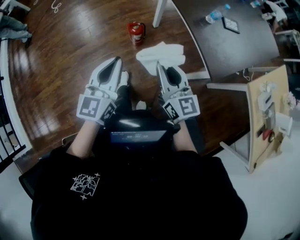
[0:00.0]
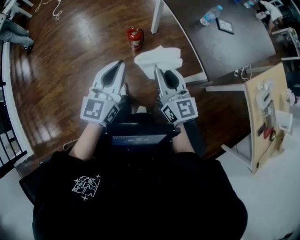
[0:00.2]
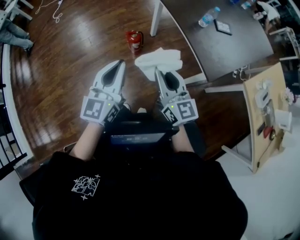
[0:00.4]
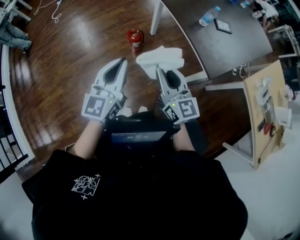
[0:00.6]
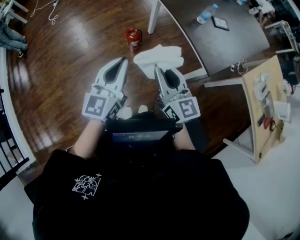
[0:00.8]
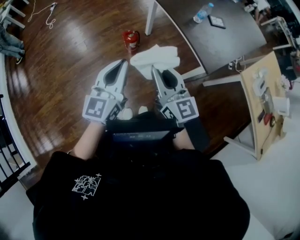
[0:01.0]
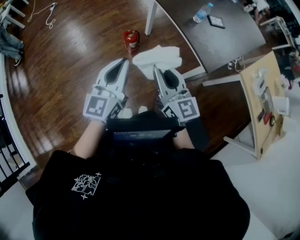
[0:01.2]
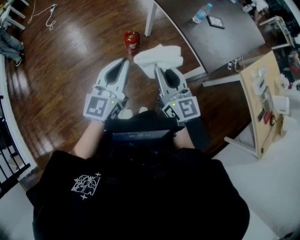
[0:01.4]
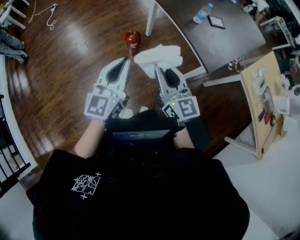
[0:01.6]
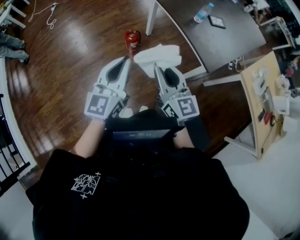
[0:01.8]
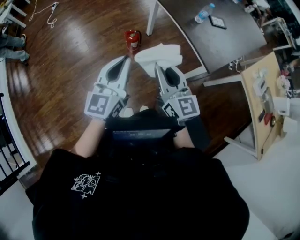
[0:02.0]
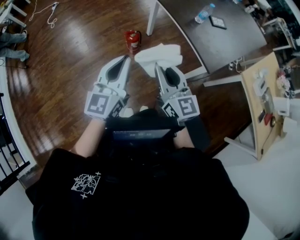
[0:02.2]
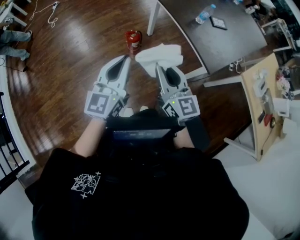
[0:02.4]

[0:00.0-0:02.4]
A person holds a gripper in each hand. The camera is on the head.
0:00.0 to 0:01.2: The right gripper shifts approximately 10 cm upward and backward. Meanwhile the left gripper moves upward, roughly 5 cm.
0:01.2 to 0:02.4: Neither gripper changes place.

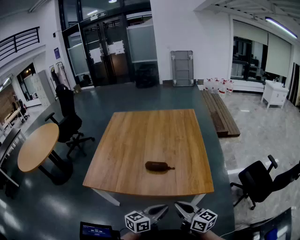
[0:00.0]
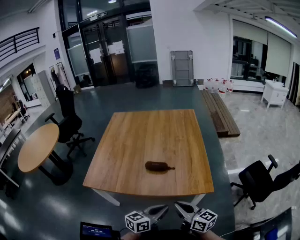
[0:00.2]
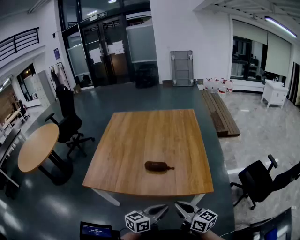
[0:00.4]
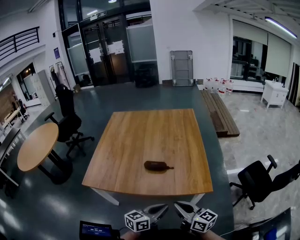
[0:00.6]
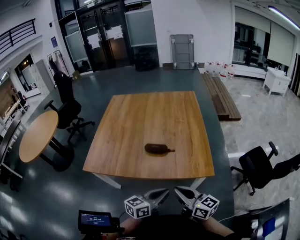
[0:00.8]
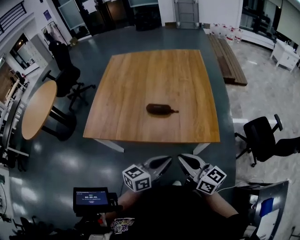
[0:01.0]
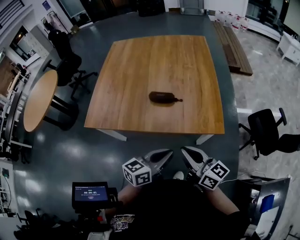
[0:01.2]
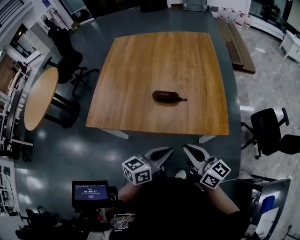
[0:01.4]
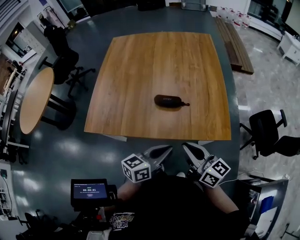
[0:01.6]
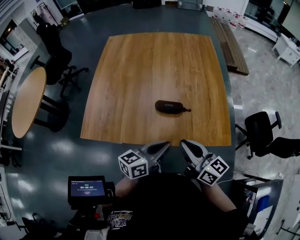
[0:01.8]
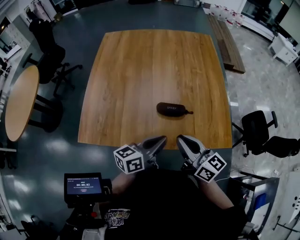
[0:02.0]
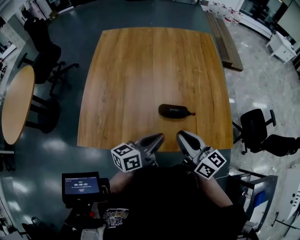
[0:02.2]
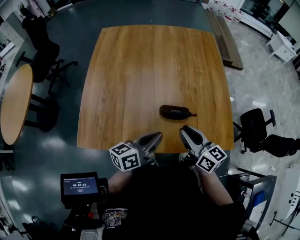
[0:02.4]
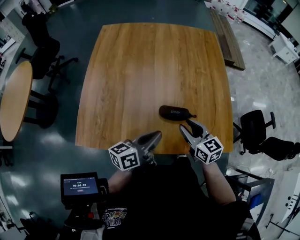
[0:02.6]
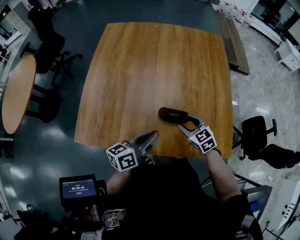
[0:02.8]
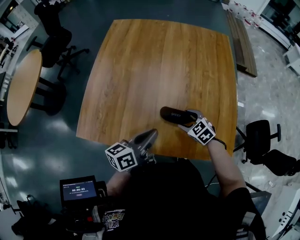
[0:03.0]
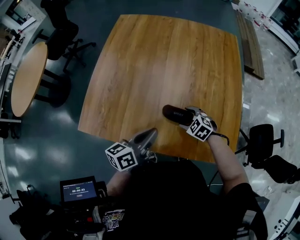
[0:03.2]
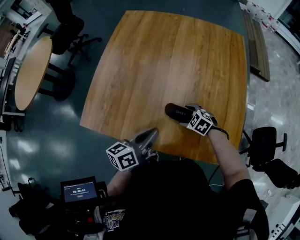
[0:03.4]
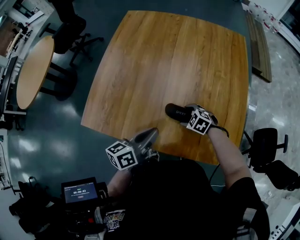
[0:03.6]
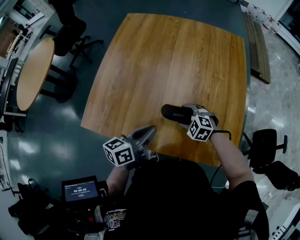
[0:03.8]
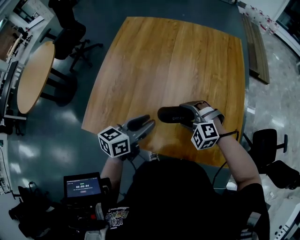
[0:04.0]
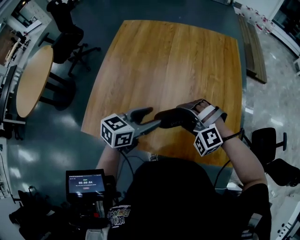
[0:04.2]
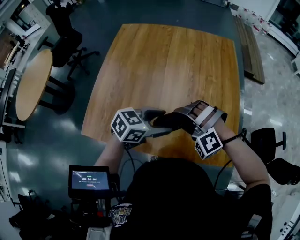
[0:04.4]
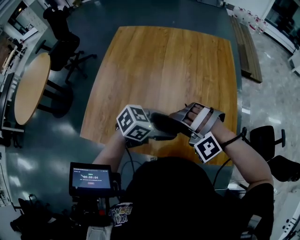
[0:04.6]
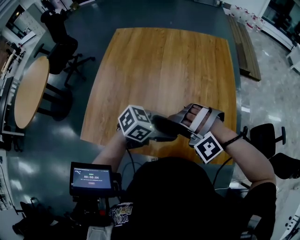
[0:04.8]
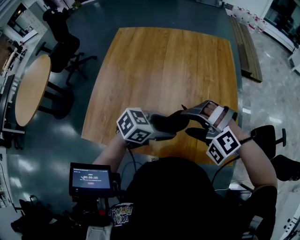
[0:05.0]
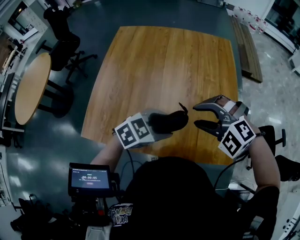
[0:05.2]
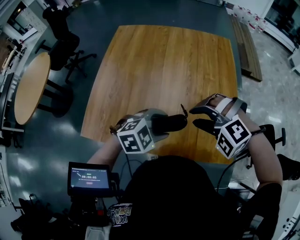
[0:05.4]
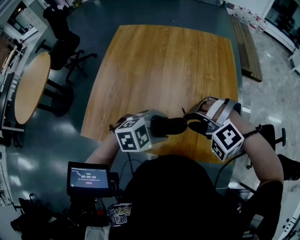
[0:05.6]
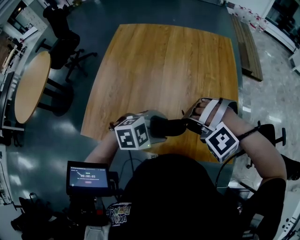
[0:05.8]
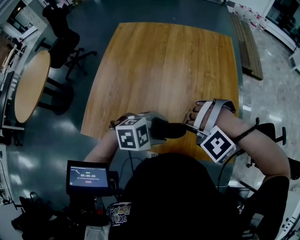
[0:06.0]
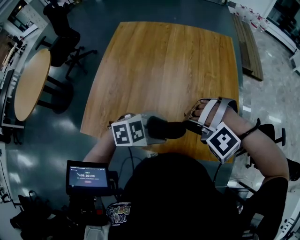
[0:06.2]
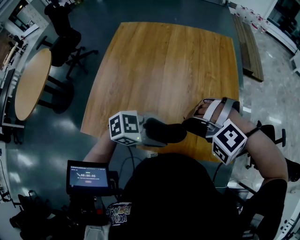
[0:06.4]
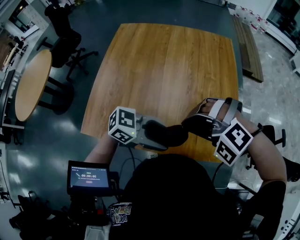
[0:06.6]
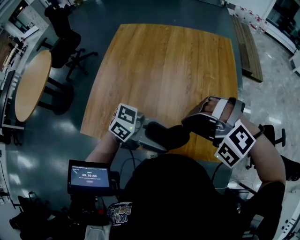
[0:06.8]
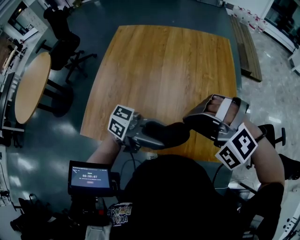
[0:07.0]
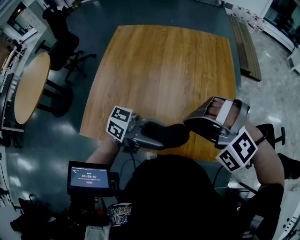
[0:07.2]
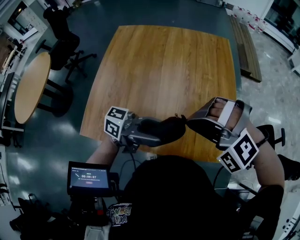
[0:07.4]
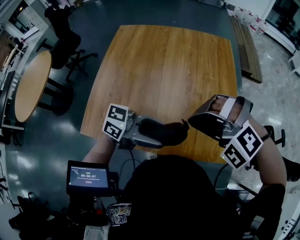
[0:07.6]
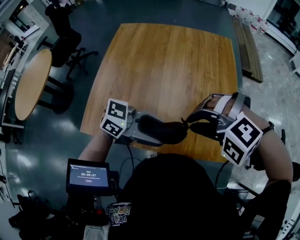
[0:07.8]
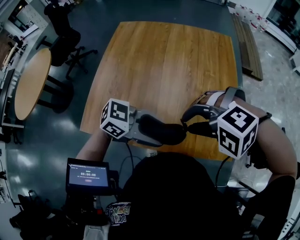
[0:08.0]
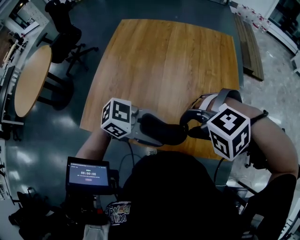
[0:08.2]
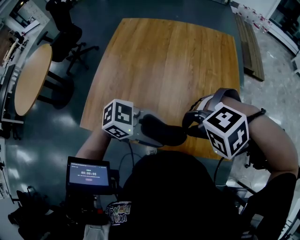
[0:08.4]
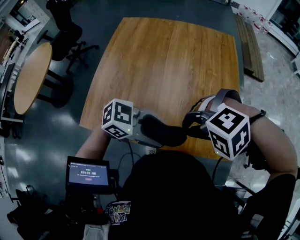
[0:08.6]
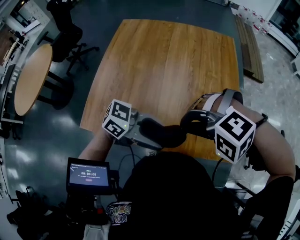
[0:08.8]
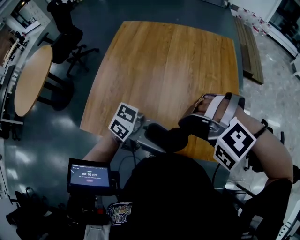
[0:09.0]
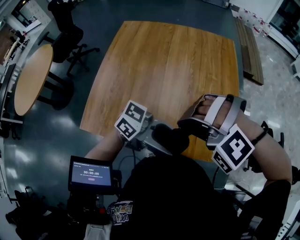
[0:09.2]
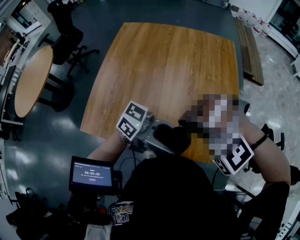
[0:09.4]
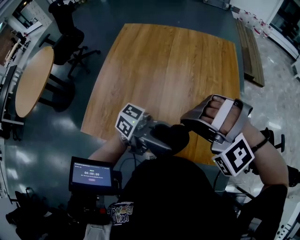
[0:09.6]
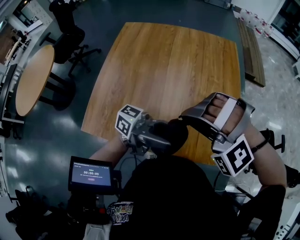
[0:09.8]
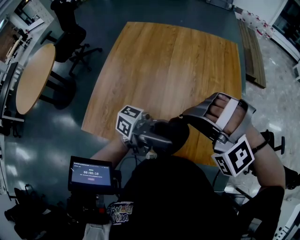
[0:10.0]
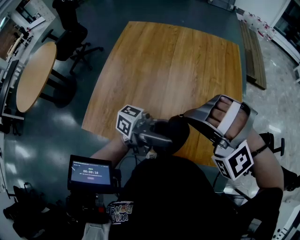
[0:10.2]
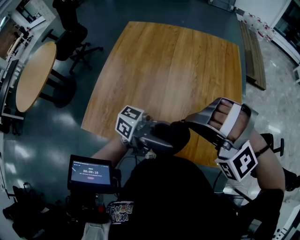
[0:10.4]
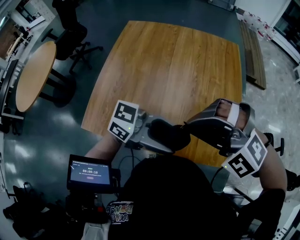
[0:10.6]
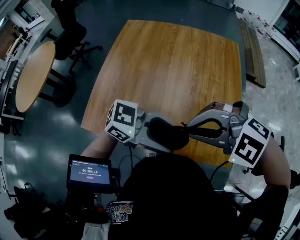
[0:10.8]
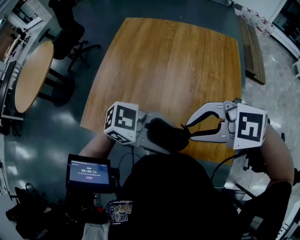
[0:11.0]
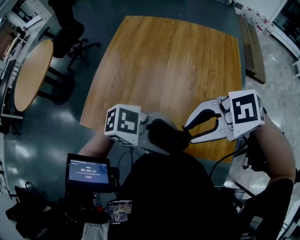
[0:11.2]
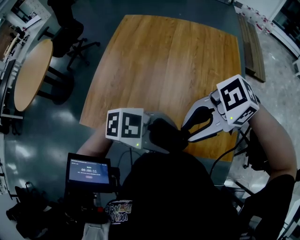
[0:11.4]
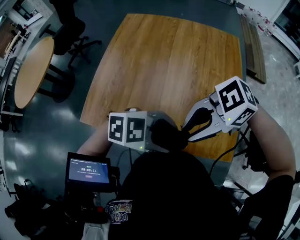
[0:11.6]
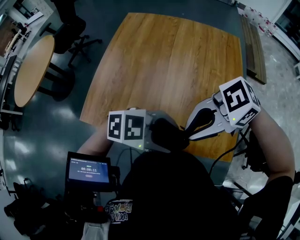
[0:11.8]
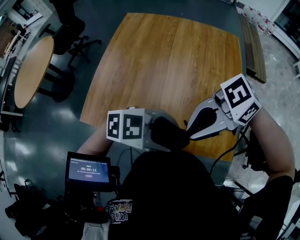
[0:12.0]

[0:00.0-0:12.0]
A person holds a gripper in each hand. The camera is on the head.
0:00.0 to 0:01.6: The grippers both shift forward by some 5 cm.
0:01.6 to 0:03.0: The right gripper goes roughly 30 cm forward and downward, tips its fingers downward by some 50 degrees, and opens its fingers, while the left gripper heads forward and to the left, covering roughly 20 cm.
0:03.0 to 0:04.4: The right gripper travels upward by about 15 cm, and twists about 70 degrees counterclockwise, seen from behind. The left gripper ends up approximately 5 cm from where it was, swivels approximately 50 degrees, and opens up.
0:04.4 to 0:06.0: The right gripper changes its angle by about 20 degrees, and closes. Meanwhile the left gripper ends up approximately 5 cm from where it was, and changes its angle by some 40 degrees.
0:06.0 to 0:07.6: The two grippers go about 10 cm upward. The right gripper rotates about 30 degrees. The left gripper tips its fingers upward by some 50 degrees.
0:09.0 to 0:10.4: The right gripper swivels roughly 30 degrees. Meanwhile the left gripper turns by about 20 degrees.
0:10.4 to 0:12.0: The left gripper is displaced downward by approximately 5 cm, and angles its fingers downward, by some 50 degrees, while the right gripper rotates approximately 100 degrees.

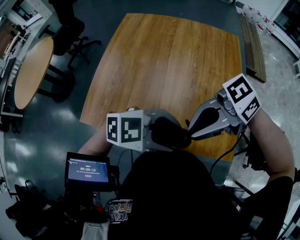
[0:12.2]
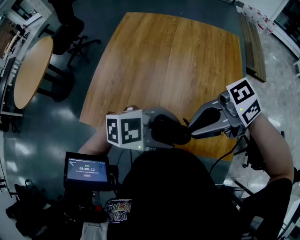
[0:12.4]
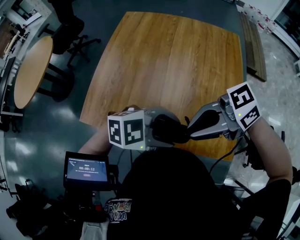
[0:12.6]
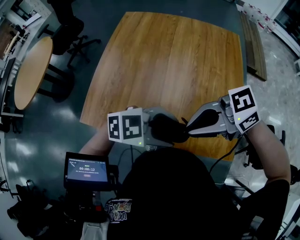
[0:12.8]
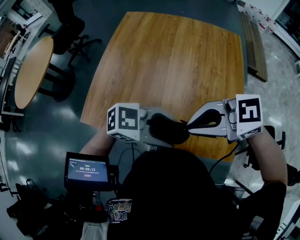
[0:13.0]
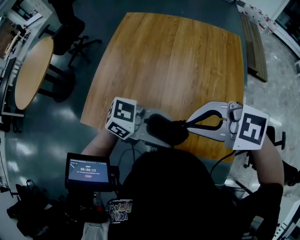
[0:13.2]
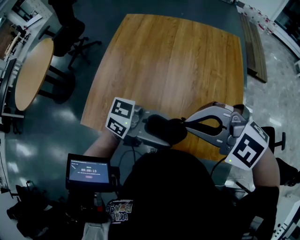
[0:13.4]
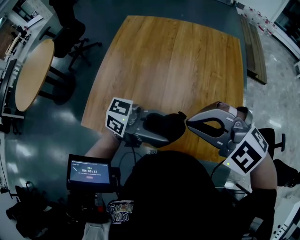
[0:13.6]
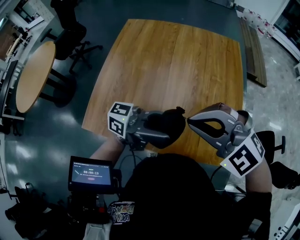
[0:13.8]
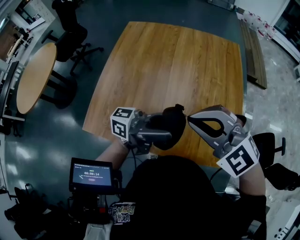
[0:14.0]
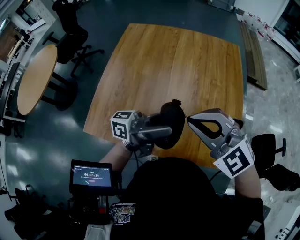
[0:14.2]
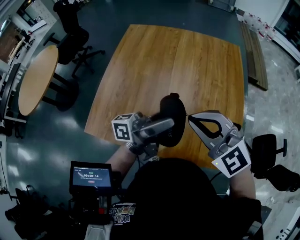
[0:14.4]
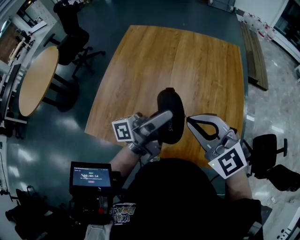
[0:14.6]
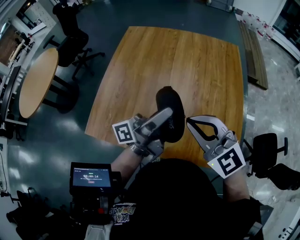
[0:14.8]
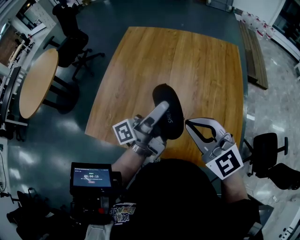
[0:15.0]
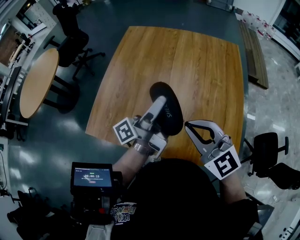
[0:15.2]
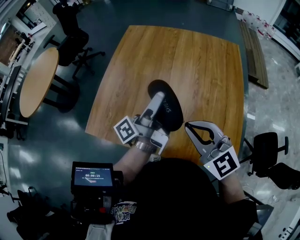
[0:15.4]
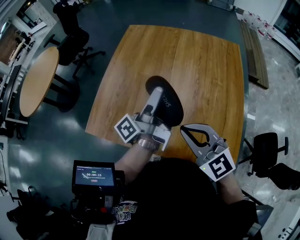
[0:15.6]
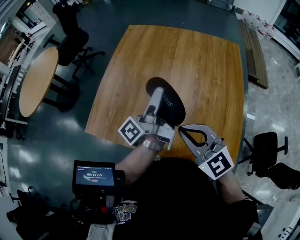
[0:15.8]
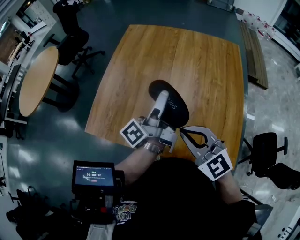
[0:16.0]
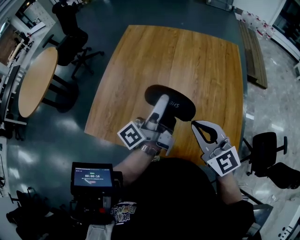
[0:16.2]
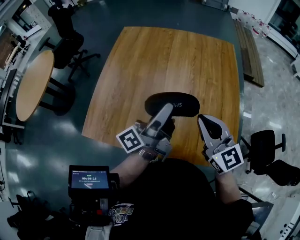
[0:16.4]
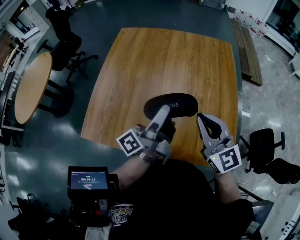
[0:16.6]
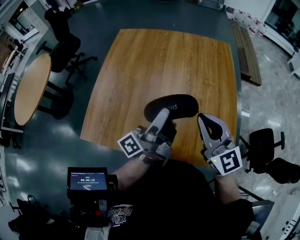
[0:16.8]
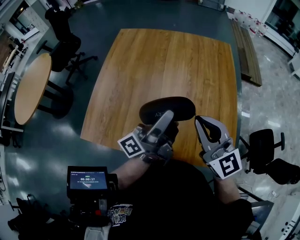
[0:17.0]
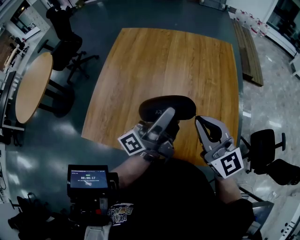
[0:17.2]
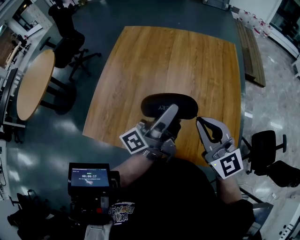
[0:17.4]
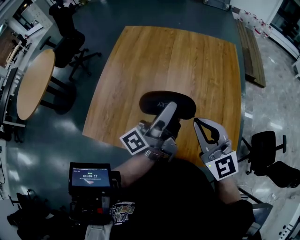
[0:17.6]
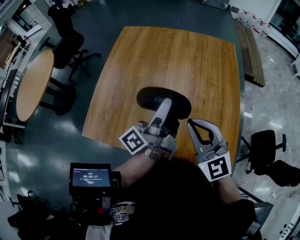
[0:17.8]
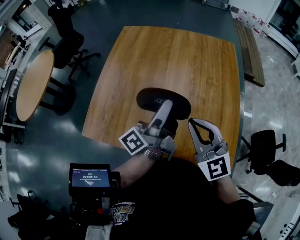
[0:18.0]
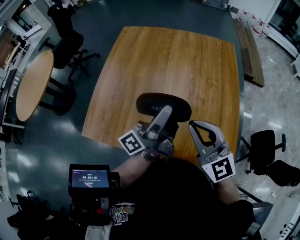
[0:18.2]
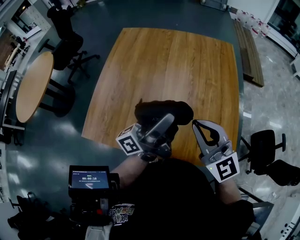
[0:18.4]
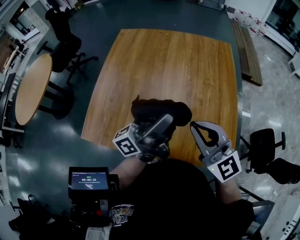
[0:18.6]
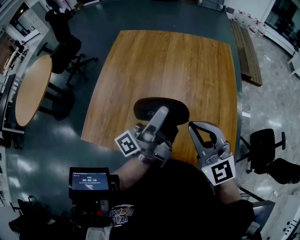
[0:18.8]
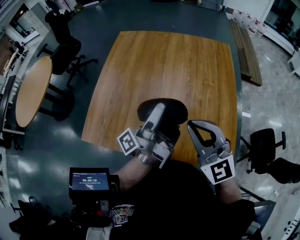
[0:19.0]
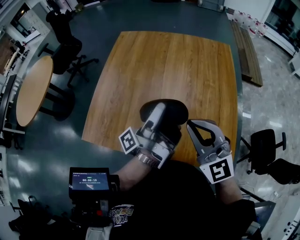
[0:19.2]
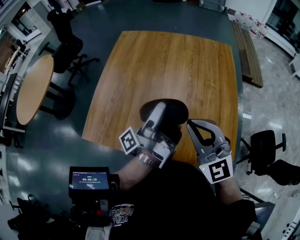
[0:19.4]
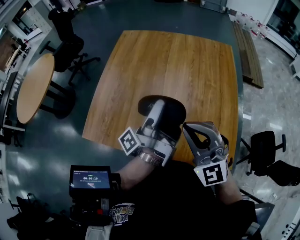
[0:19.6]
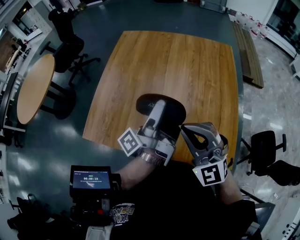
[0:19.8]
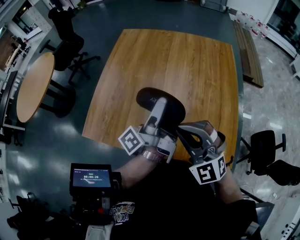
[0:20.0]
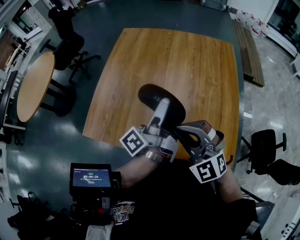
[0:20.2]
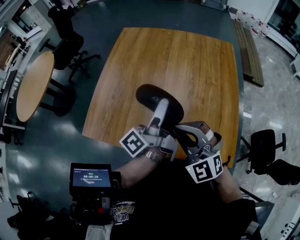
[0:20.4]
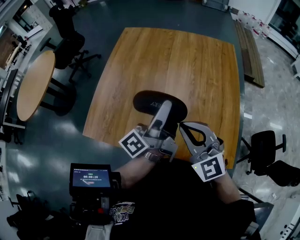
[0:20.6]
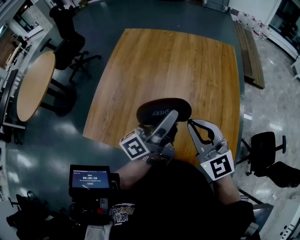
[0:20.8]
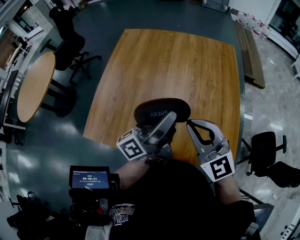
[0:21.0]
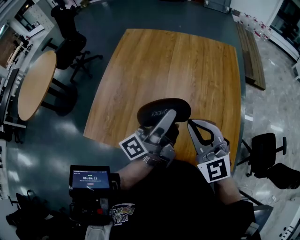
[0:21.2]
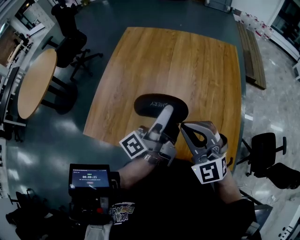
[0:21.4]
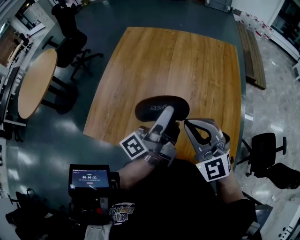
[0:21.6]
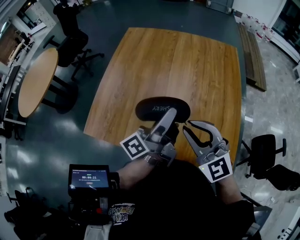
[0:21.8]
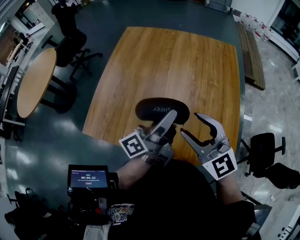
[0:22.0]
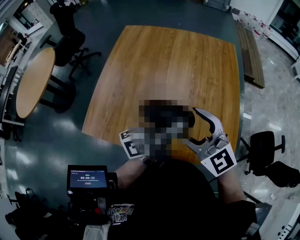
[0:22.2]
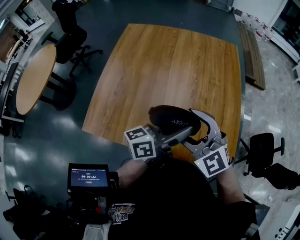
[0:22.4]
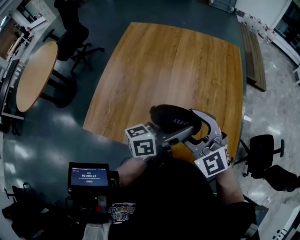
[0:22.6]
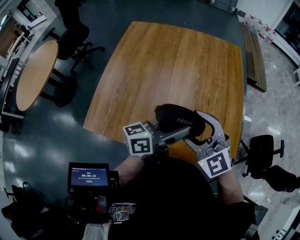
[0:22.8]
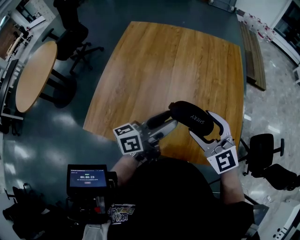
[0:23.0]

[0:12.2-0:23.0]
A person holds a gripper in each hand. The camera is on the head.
0:12.2 to 0:13.8: The left gripper travels upward by about 5 cm, and tilts its fingers roughly 50 degrees upward. Meanwhile the right gripper rotates about 80 degrees.
0:13.8 to 0:15.2: The left gripper moves approximately 10 cm, and turns by roughly 60 degrees. The right gripper shifts by roughly 5 cm, and rotates some 30 degrees.
0:15.2 to 0:16.8: The right gripper goes some 10 cm to the right, and changes its angle by approximately 20 degrees.
0:16.8 to 0:18.4: The grippers move only a little.
0:18.4 to 0:20.0: The right gripper shifts roughly 5 cm to the left, and turns by approximately 30 degrees. The left gripper ends up approximately 5 cm from where it was, and rotates approximately 30 degrees.
0:21.4 to 0:23.0: The left gripper heads downward, covering roughly 5 cm, and swivels approximately 40 degrees, while the right gripper changes place by about 5 cm, and opens up.
